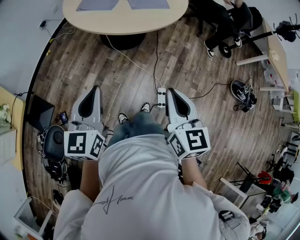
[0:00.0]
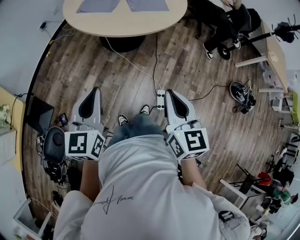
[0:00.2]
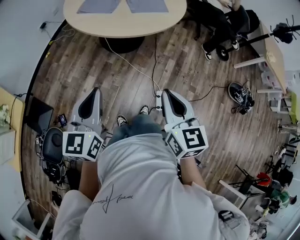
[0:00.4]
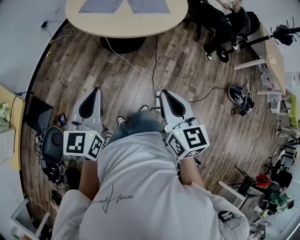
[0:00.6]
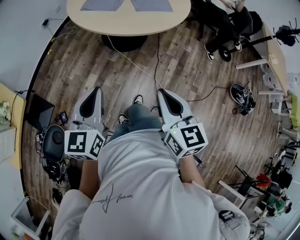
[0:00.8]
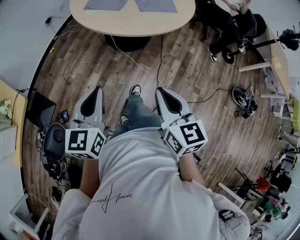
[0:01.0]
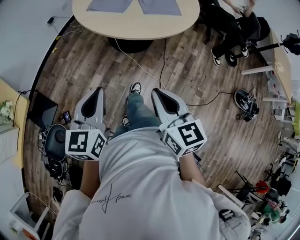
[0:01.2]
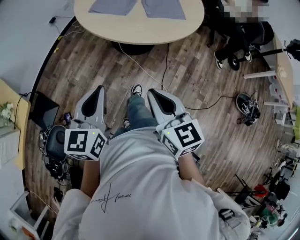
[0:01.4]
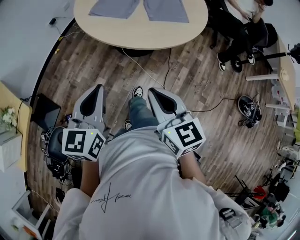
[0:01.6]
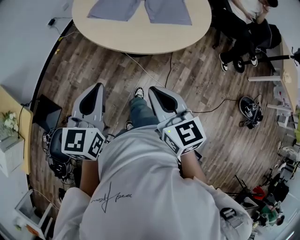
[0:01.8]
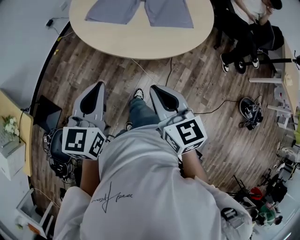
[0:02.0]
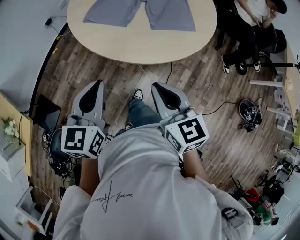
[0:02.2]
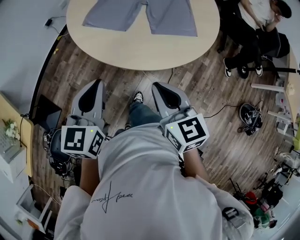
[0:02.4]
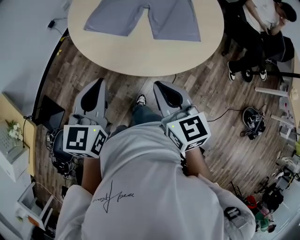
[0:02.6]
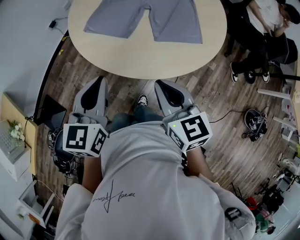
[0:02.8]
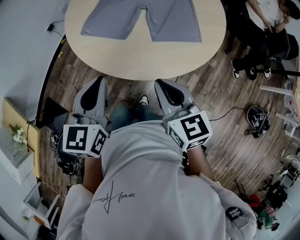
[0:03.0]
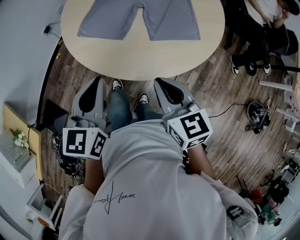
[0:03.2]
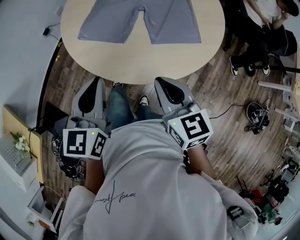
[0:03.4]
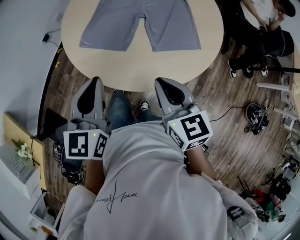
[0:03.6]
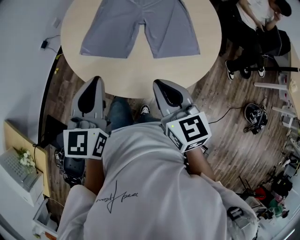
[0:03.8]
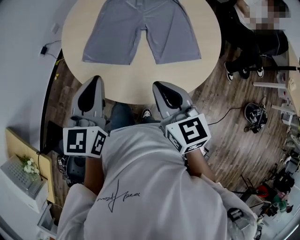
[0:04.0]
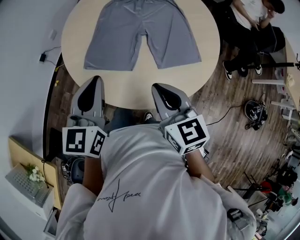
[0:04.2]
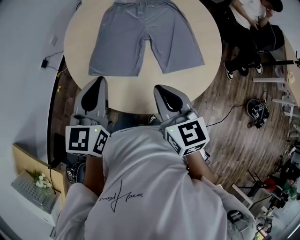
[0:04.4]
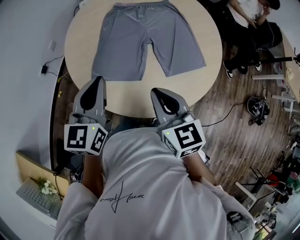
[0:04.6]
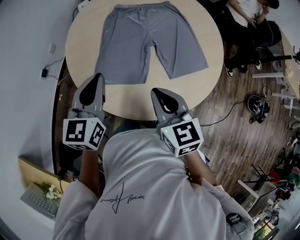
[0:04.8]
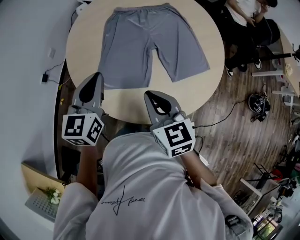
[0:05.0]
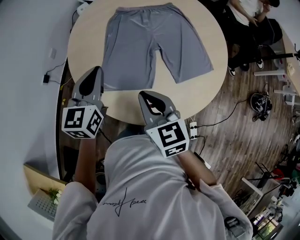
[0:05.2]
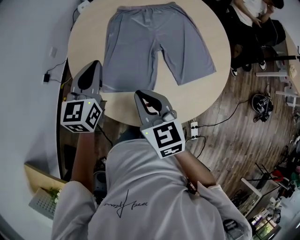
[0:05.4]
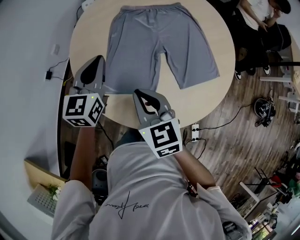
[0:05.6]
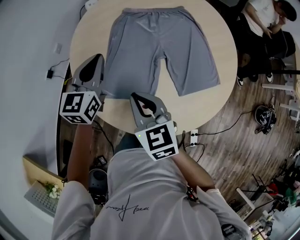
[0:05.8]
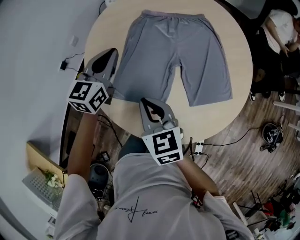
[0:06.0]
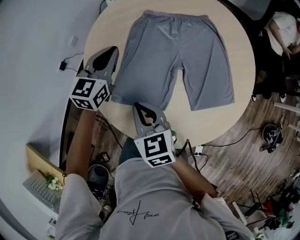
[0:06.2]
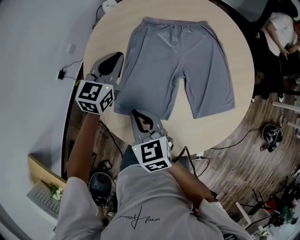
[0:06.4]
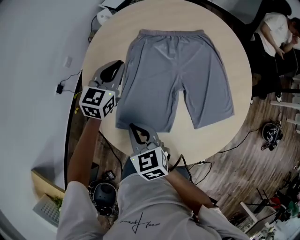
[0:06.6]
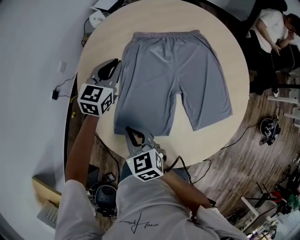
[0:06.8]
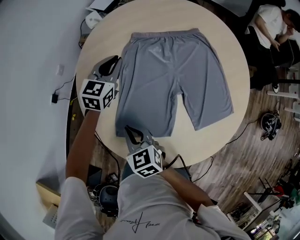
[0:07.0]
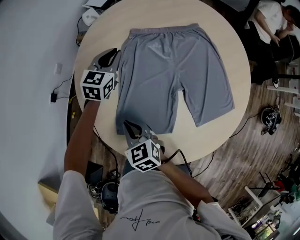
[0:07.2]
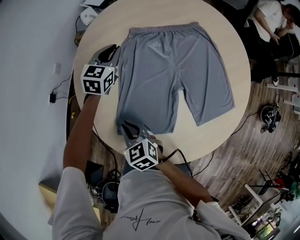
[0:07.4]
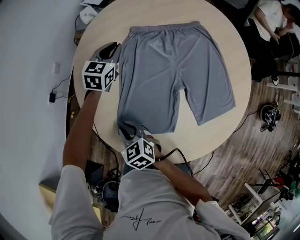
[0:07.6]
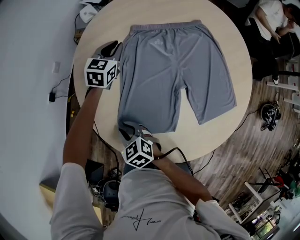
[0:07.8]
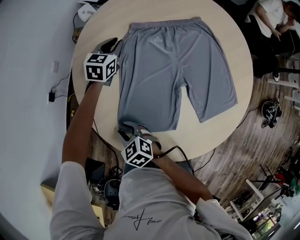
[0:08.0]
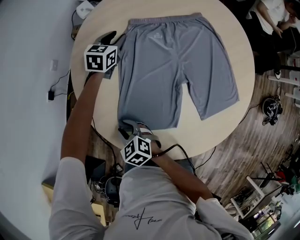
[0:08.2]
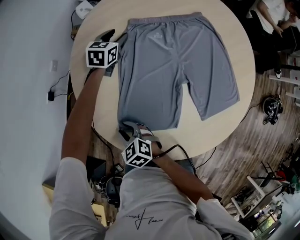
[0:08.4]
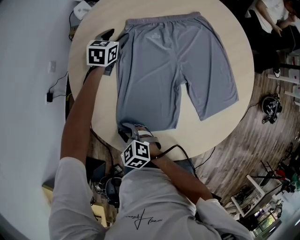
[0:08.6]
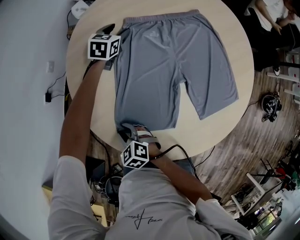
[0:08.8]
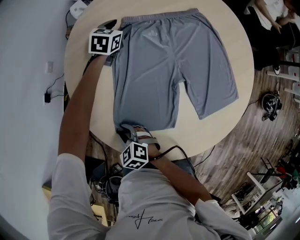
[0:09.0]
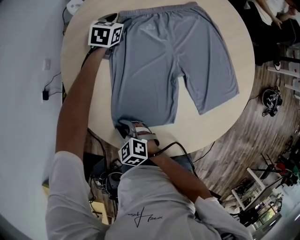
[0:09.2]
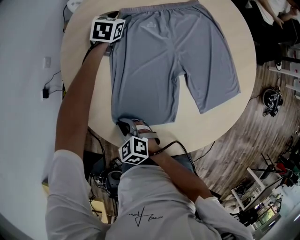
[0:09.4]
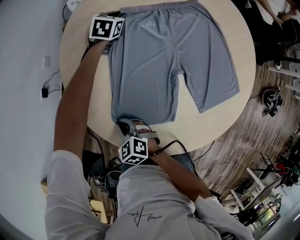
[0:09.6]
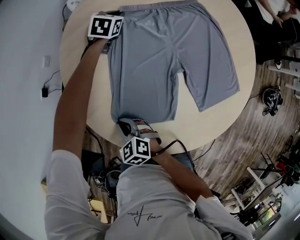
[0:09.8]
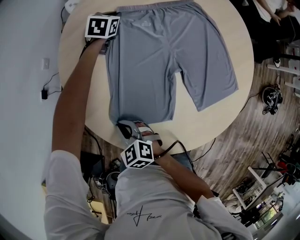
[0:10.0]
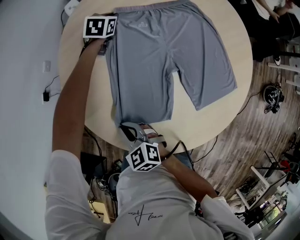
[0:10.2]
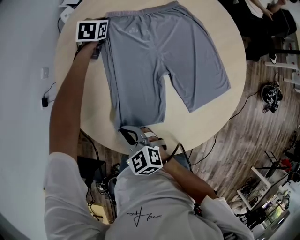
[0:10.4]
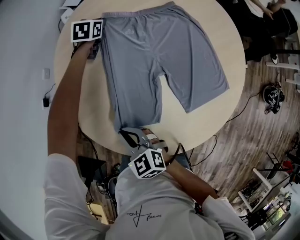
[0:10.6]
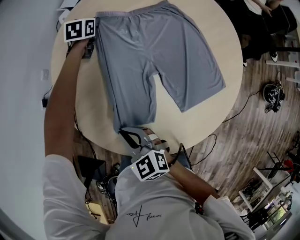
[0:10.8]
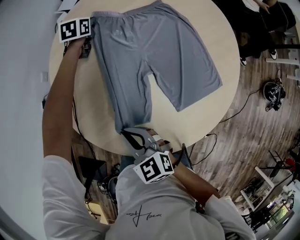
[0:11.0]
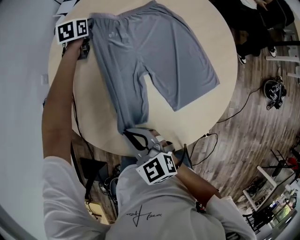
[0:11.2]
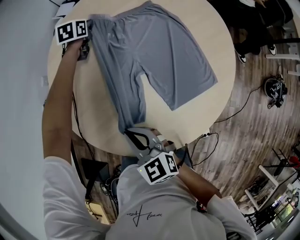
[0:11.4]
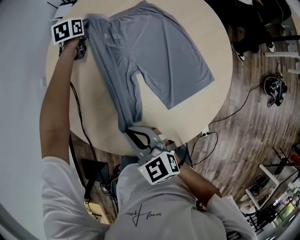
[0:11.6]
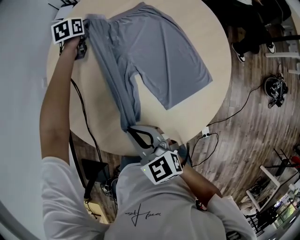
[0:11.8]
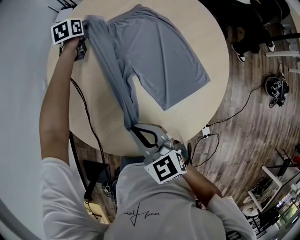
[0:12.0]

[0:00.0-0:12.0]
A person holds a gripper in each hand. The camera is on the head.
0:00.0 to 0:01.6: The left gripper goes approximately 10 cm forward, while the right gripper goes approximately 15 cm forward and to the left, and turns by roughly 20 degrees.
0:01.6 to 0:03.0: The grippers both shift forward by about 25 cm.
0:03.0 to 0:04.4: The grippers both shift forward and to the left by roughly 20 cm.
0:04.4 to 0:06.0: The right gripper moves forward, to the left and downward, some 20 cm. Meanwhile the left gripper is displaced forward by roughly 25 cm.
0:06.0 to 0:07.6: The left gripper shifts approximately 25 cm forward and downward. The right gripper shifts some 20 cm downward and to the left.
0:07.6 to 0:09.0: The right gripper moves downward, roughly 5 cm. The left gripper is displaced downward, to the right and forward by approximately 10 cm, and opens its fingers.
0:09.0 to 0:10.4: The left gripper closes. The right gripper moves upward and to the right, about 10 cm, and closes up.
0:10.4 to 0:12.0: The left gripper is displaced upward and to the right by some 10 cm. Meanwhile the right gripper goes roughly 20 cm to the right and upward, and changes its angle by roughly 20 degrees.

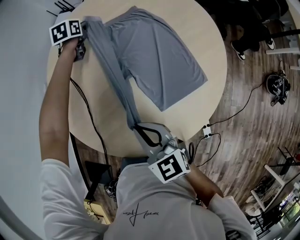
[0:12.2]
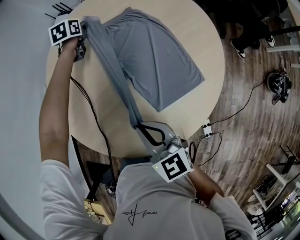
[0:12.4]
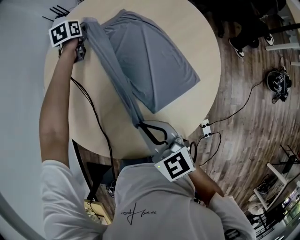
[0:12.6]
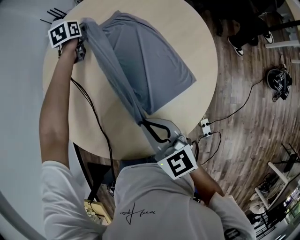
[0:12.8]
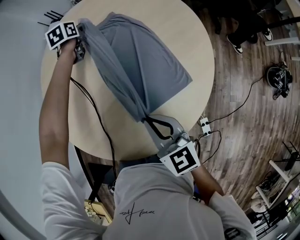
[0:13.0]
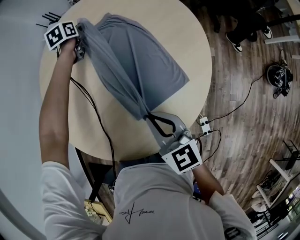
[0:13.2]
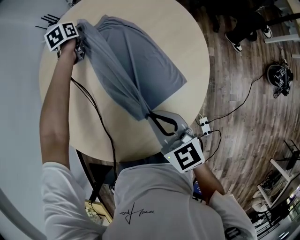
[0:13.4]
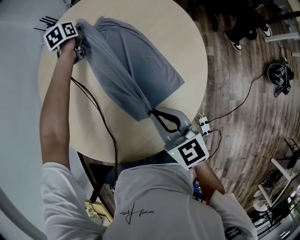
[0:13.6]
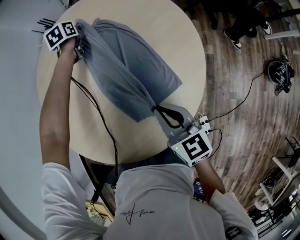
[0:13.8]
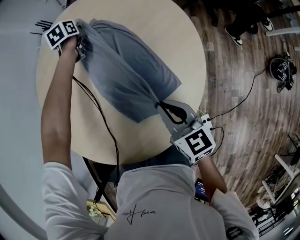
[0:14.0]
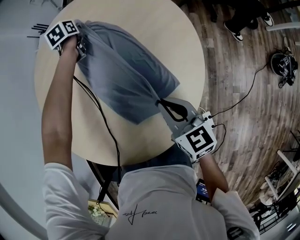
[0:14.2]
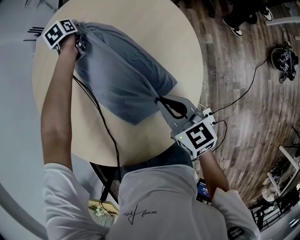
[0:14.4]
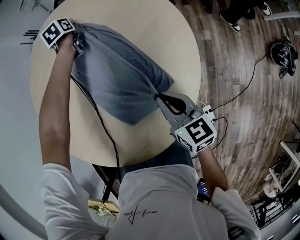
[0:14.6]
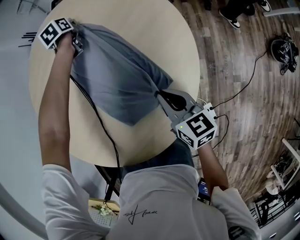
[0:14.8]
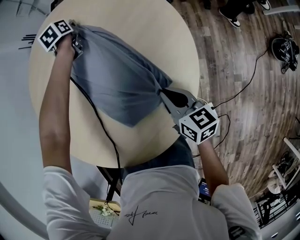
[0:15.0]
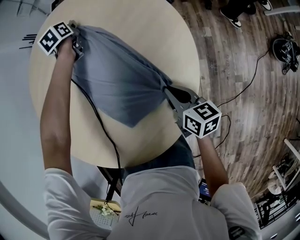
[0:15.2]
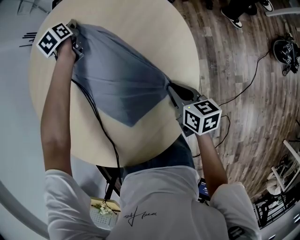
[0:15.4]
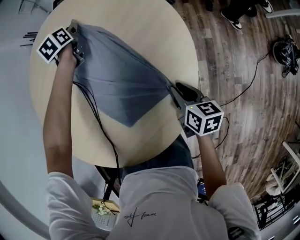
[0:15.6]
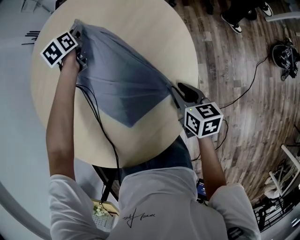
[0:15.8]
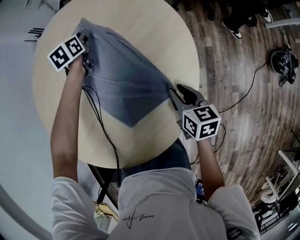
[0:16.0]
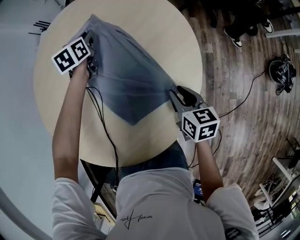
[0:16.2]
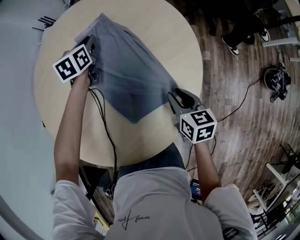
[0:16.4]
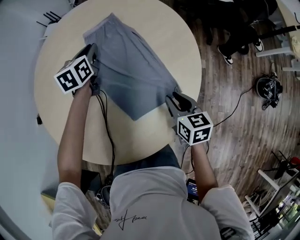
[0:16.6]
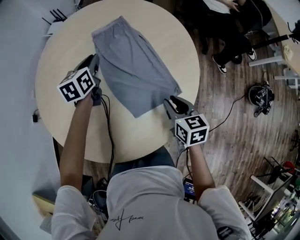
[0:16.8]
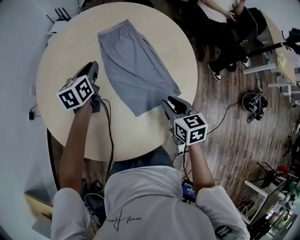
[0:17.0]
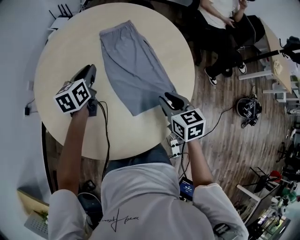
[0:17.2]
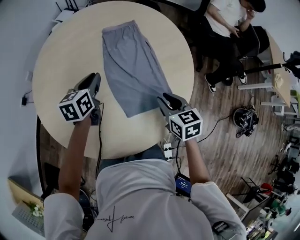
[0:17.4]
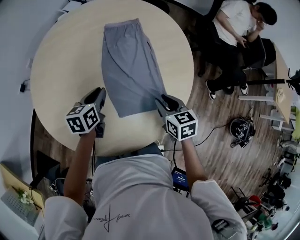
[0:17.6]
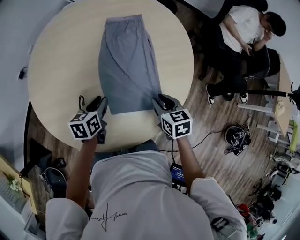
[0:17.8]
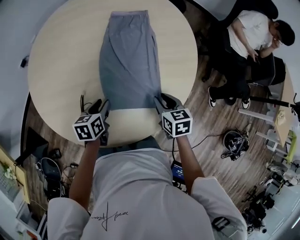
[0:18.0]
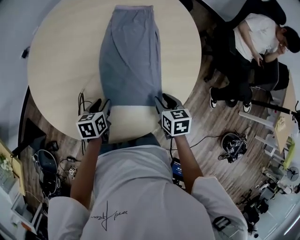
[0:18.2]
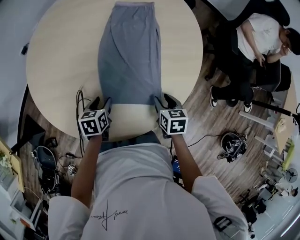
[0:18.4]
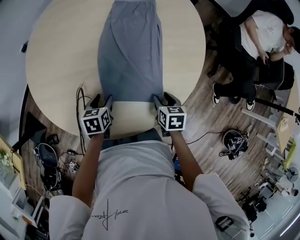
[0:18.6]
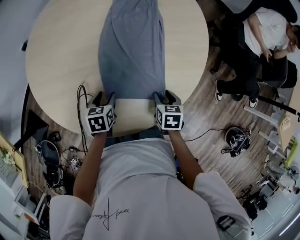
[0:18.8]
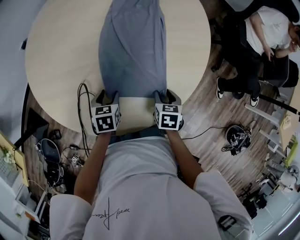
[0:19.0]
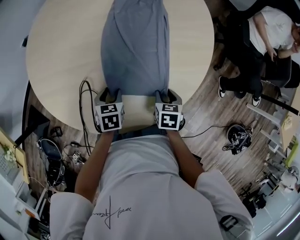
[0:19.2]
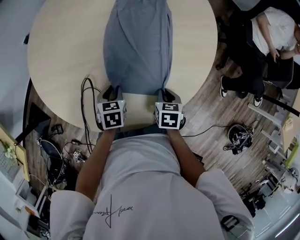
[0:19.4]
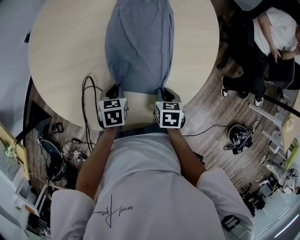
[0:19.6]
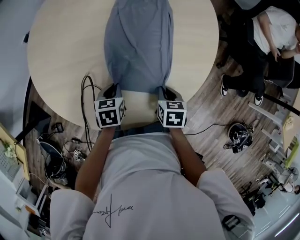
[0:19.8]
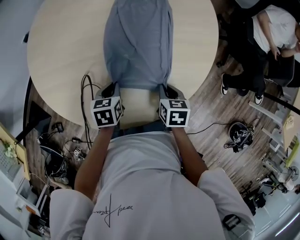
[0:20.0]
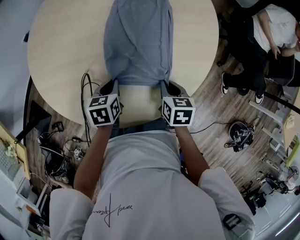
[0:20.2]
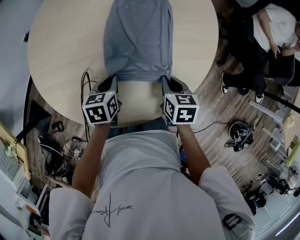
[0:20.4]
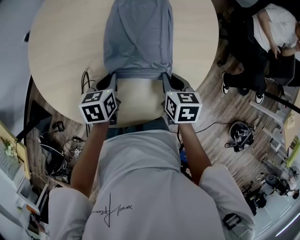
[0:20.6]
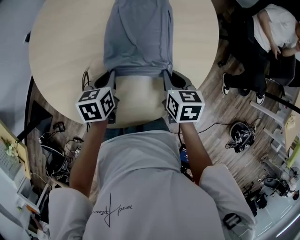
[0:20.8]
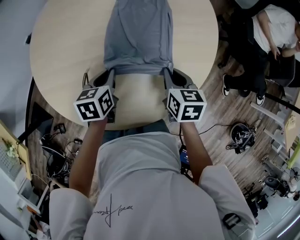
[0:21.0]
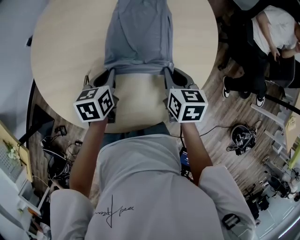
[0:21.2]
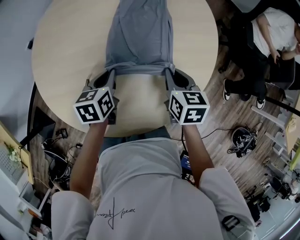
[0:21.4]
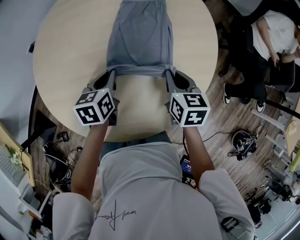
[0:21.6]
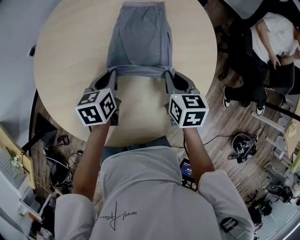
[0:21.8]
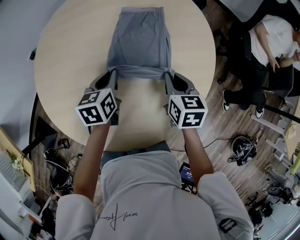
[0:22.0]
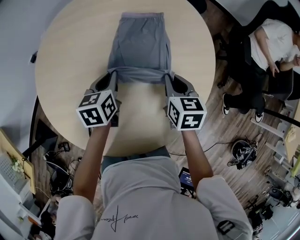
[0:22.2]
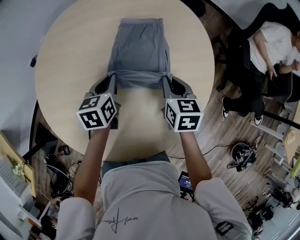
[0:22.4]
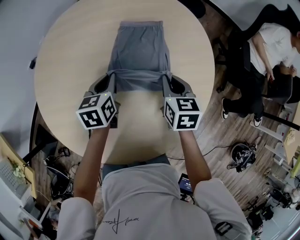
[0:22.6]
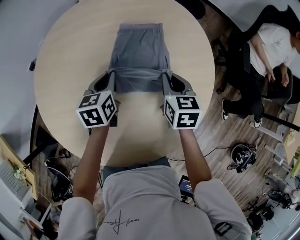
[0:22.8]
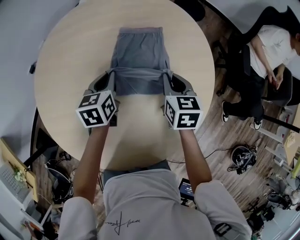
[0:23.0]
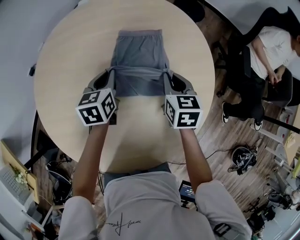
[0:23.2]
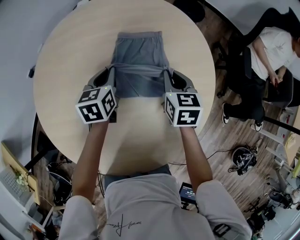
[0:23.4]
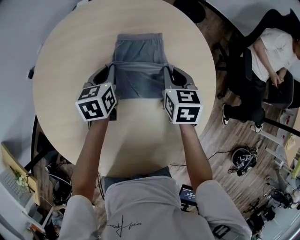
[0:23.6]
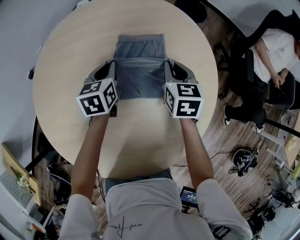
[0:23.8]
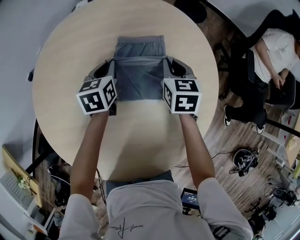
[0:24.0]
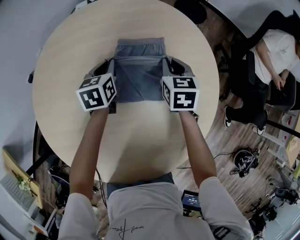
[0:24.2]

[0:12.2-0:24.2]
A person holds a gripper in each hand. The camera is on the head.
0:12.2 to 0:13.8: The grippers both shift to the right by some 20 cm.
0:13.8 to 0:15.2: The right gripper moves downward and to the right, roughly 15 cm, and swivels roughly 30 degrees, while the left gripper travels to the right and downward by approximately 10 cm.
0:15.2 to 0:16.6: The right gripper moves upward, some 5 cm, rotates about 20 degrees, and opens its fingers. Meanwhile the left gripper moves backward, upward and to the left, roughly 20 cm.
0:16.6 to 0:18.2: The left gripper is displaced backward by some 30 cm, and rotates some 30 degrees. The right gripper moves about 5 cm, and rotates some 30 degrees.
0:18.2 to 0:19.8: The right gripper ends up approximately 5 cm from where it was, and closes. The left gripper closes its fingers.
0:19.8 to 0:21.2: The grippers both shift upward and forward by approximately 15 cm.
0:21.2 to 0:22.6: Both grippers move forward, roughly 15 cm.
0:22.6 to 0:24.2: The two grippers go approximately 15 cm forward.
